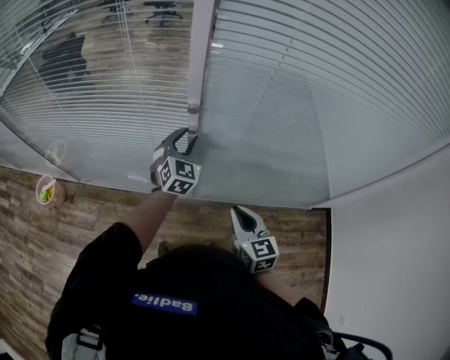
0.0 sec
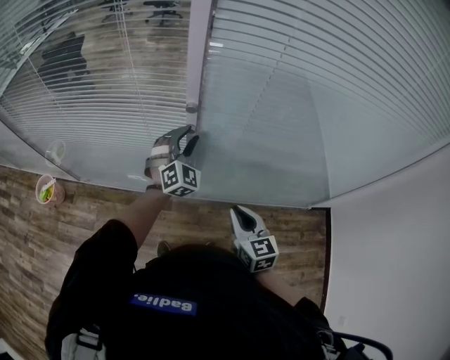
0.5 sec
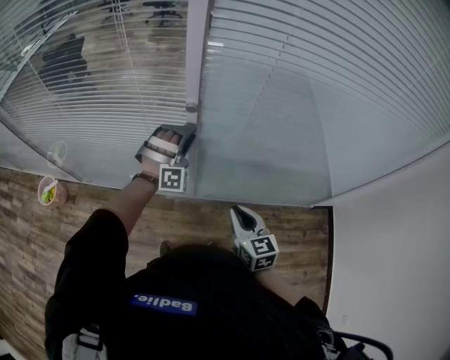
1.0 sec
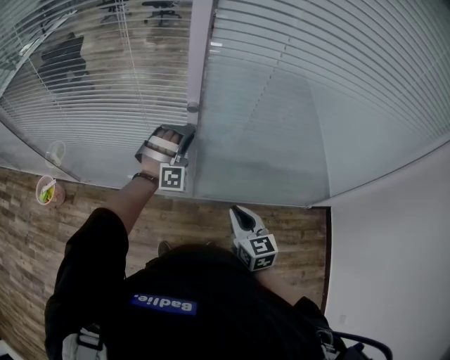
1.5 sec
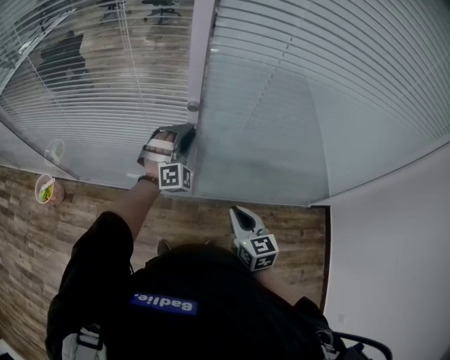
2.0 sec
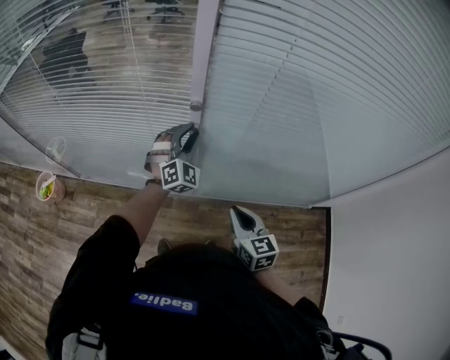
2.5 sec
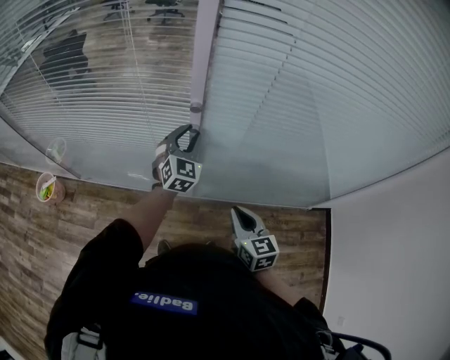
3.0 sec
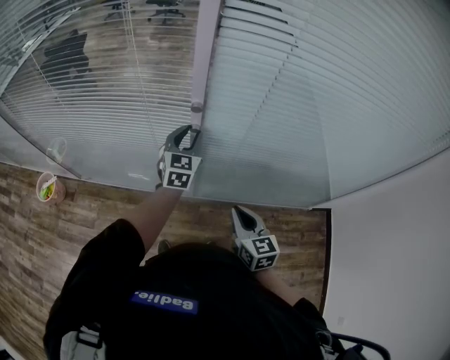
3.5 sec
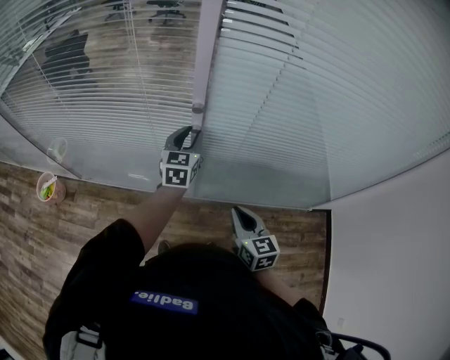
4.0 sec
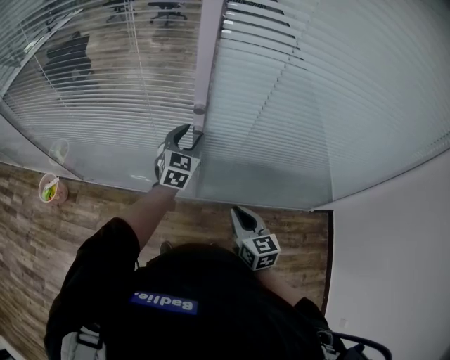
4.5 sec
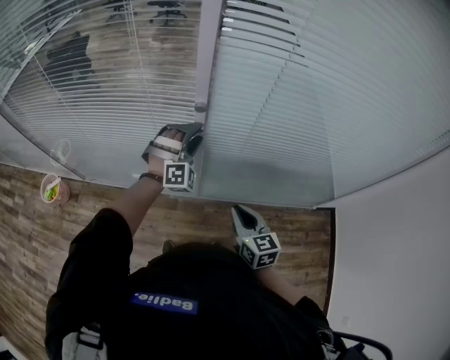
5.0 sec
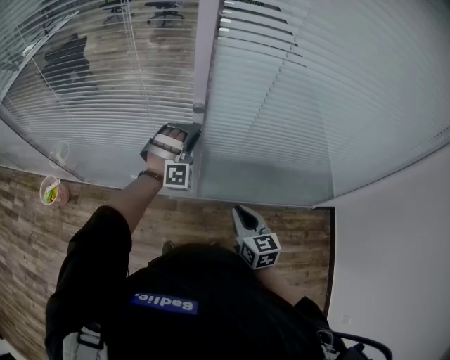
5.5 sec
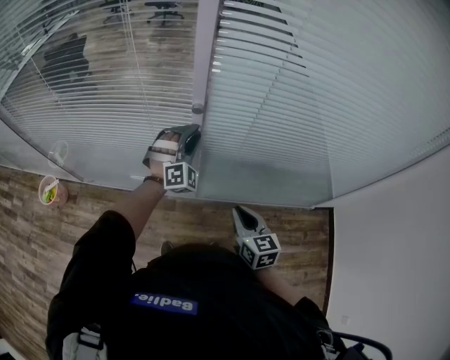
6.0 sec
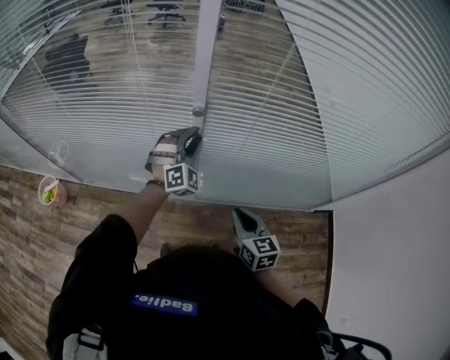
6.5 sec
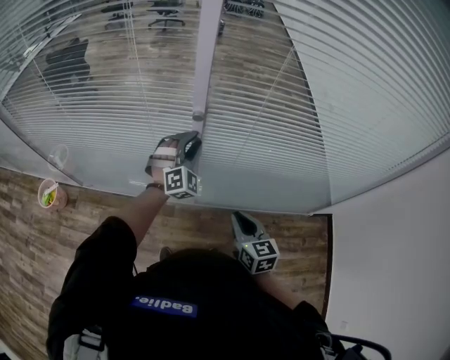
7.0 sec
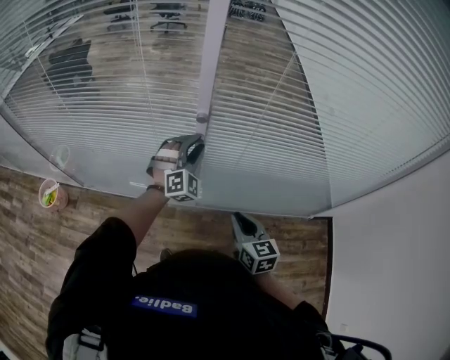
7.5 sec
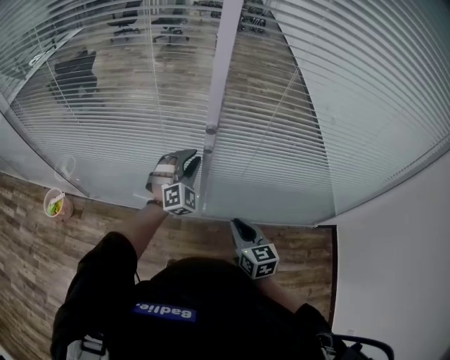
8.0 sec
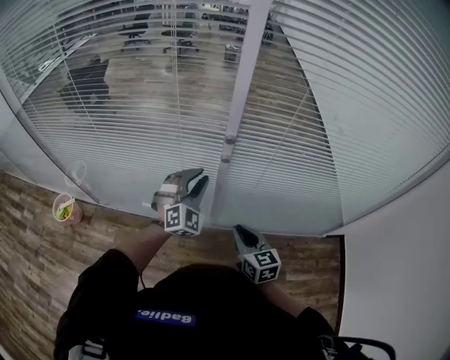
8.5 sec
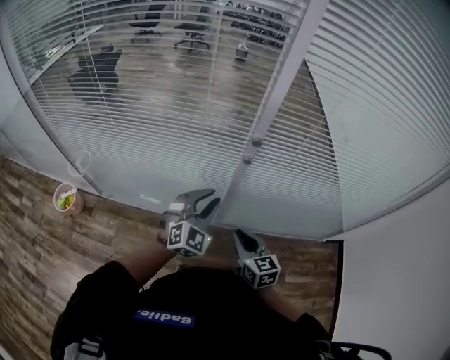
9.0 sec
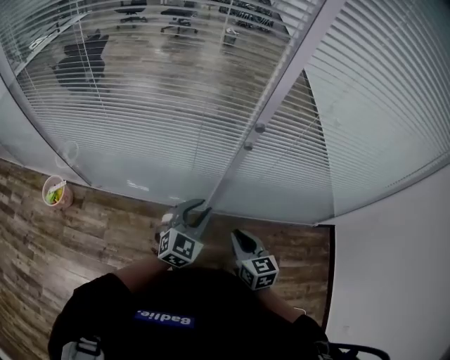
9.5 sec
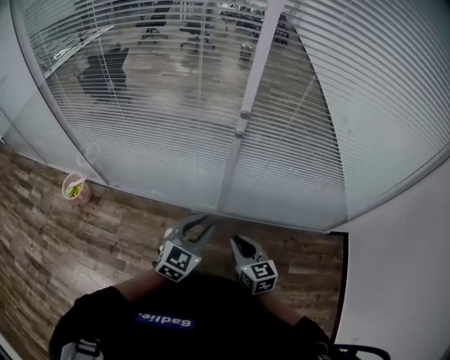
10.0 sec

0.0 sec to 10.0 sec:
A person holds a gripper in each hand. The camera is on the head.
0.0 sec to 2.0 sec: The left gripper twists roughly 50 degrees clockwise, seen from behind.
2.0 sec to 4.0 sec: The left gripper twists about 70 degrees counterclockwise, seen from behind.
4.0 sec to 6.0 sec: The left gripper rotates around the line of its fingers by about 70 degrees, clockwise from behind.
6.0 sec to 8.0 sec: The grippers move only a little.
8.0 sec to 10.0 sec: The right gripper moves backward and to the left, approximately 15 cm, while the left gripper heads backward, covering about 30 cm, and rotates around the line of its fingers by approximately 40 degrees, counterclockwise from behind.

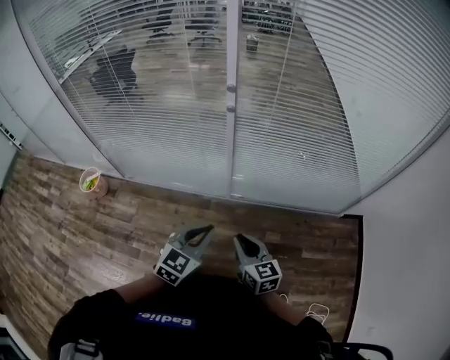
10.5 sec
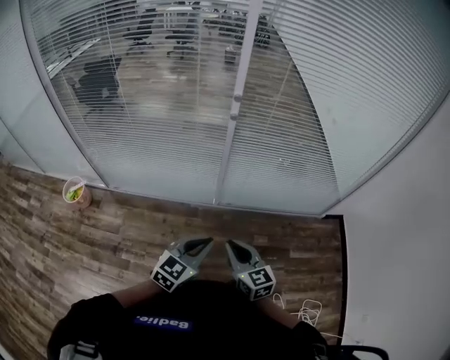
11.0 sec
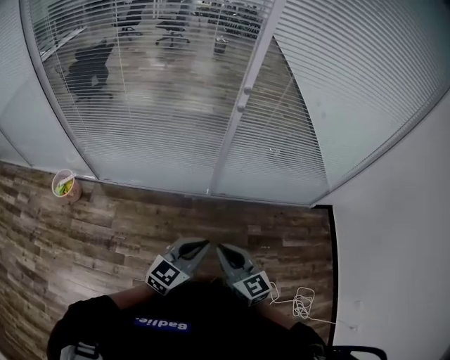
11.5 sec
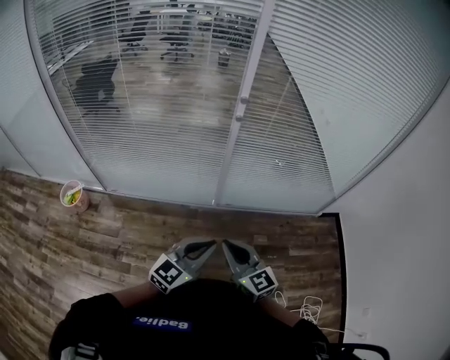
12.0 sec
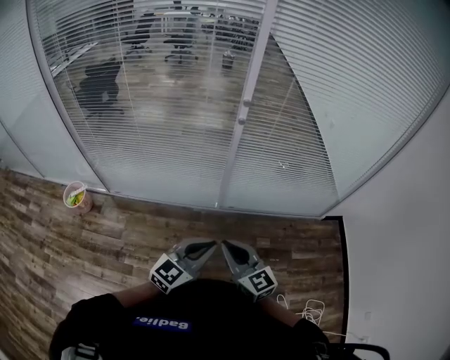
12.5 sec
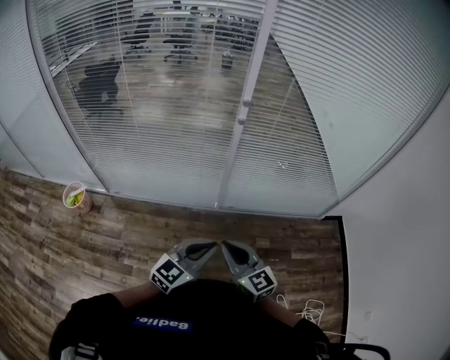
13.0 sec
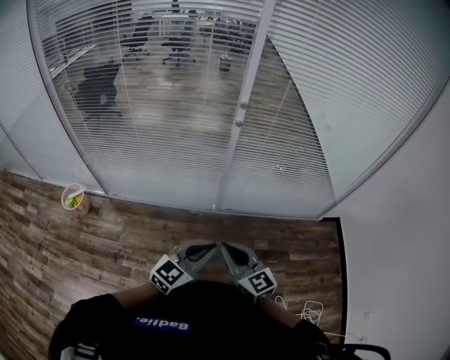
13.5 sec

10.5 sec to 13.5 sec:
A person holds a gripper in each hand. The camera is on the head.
10.5 sec to 12.0 sec: The left gripper heads backward, covering some 5 cm, and turns by some 20 degrees, while the right gripper moves to the left, upward and backward, some 15 cm.
12.0 sec to 13.5 sec: Both grippers stay put.

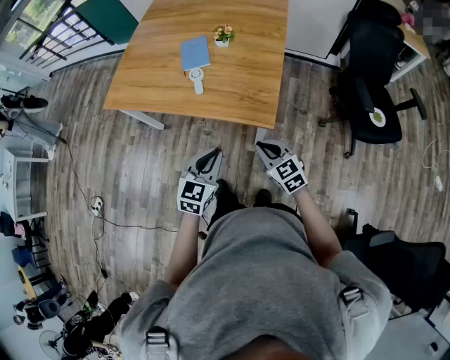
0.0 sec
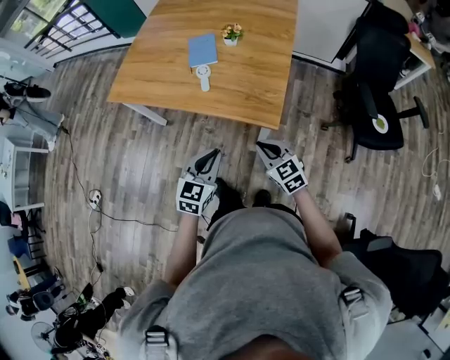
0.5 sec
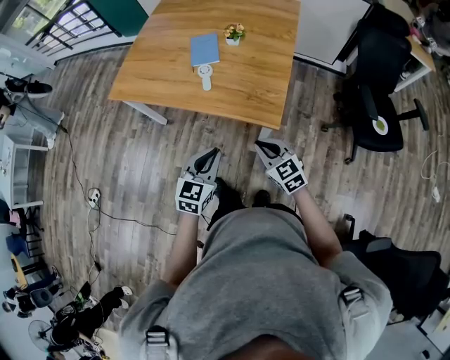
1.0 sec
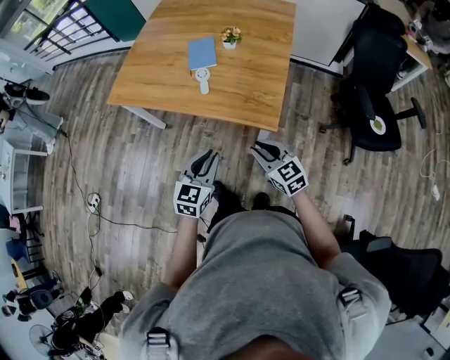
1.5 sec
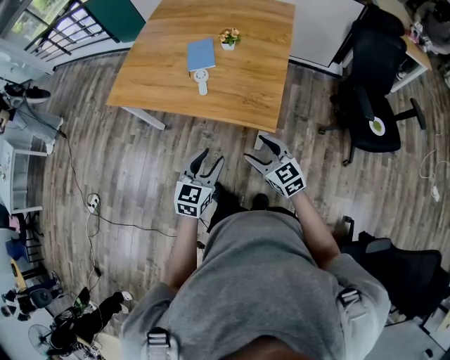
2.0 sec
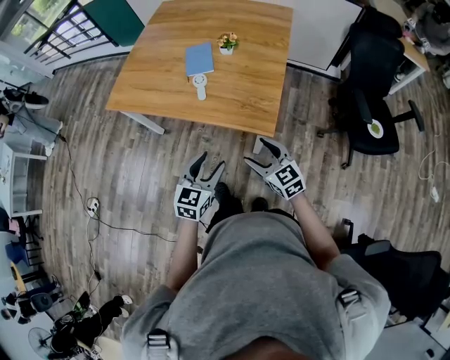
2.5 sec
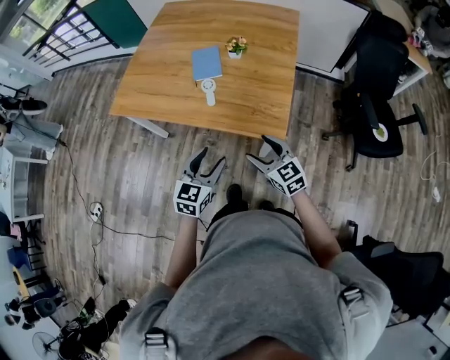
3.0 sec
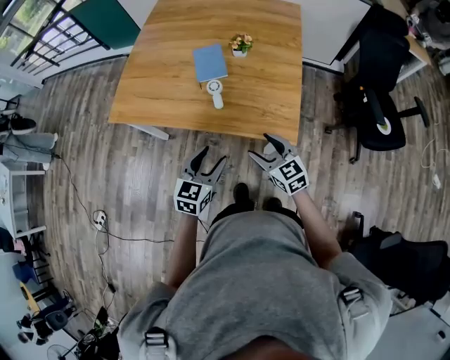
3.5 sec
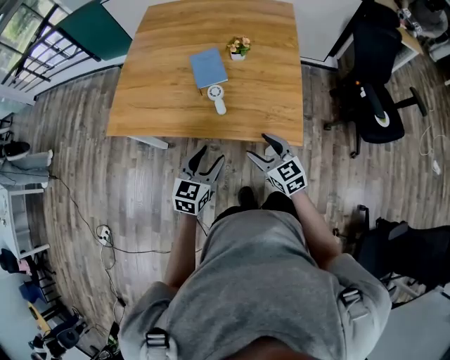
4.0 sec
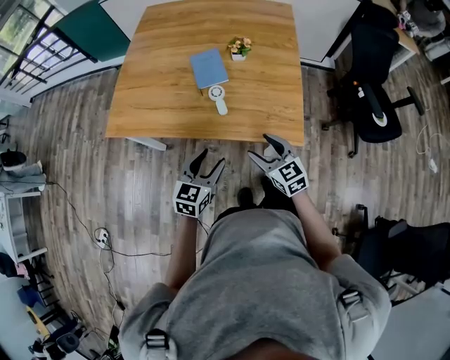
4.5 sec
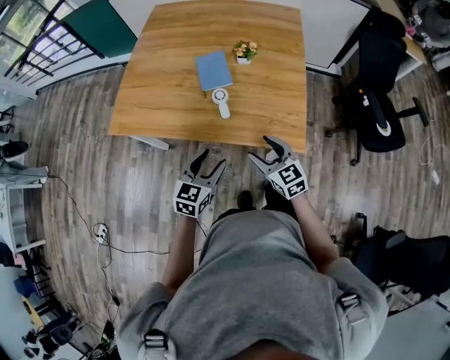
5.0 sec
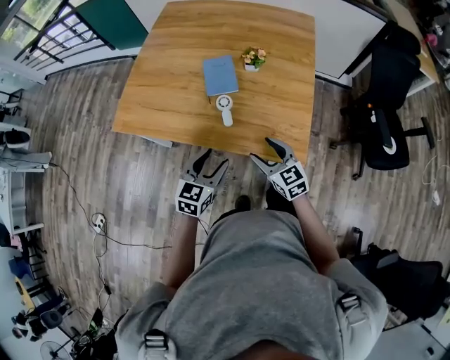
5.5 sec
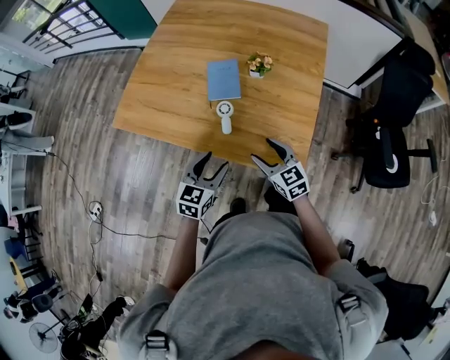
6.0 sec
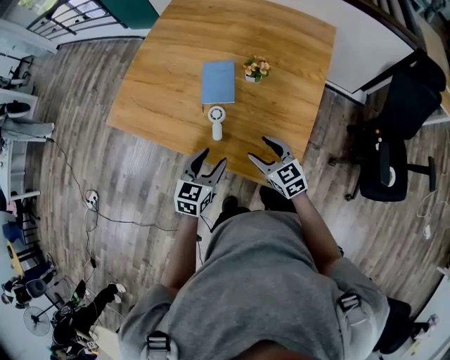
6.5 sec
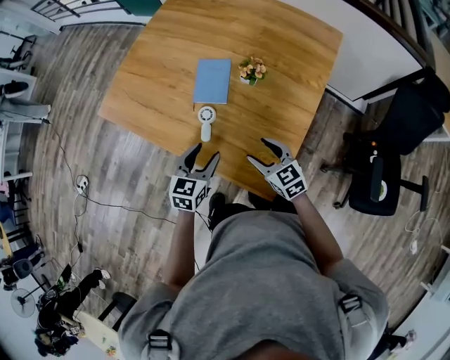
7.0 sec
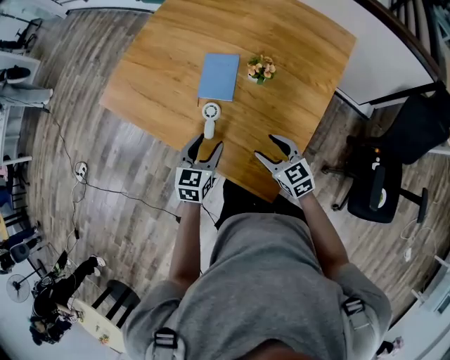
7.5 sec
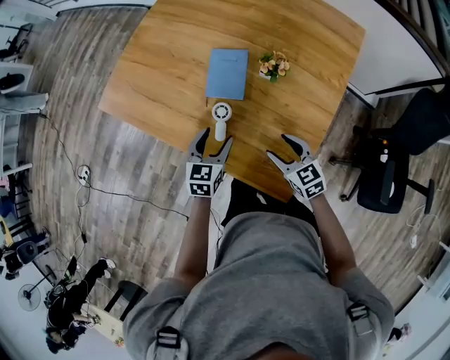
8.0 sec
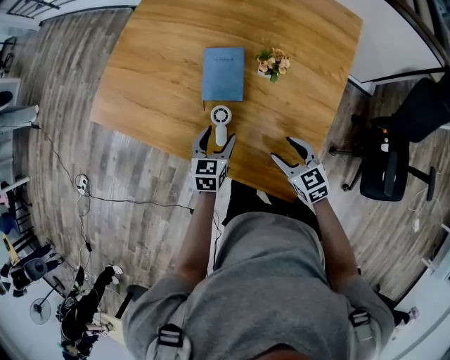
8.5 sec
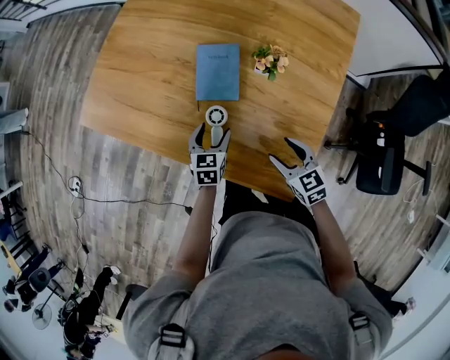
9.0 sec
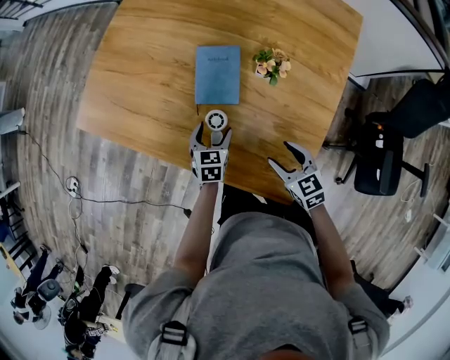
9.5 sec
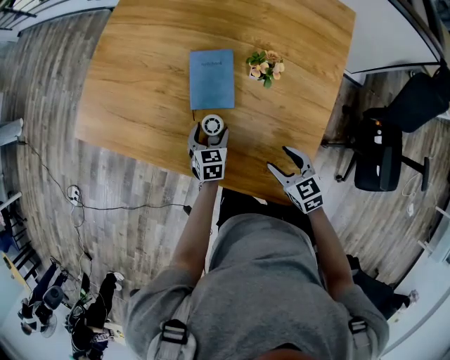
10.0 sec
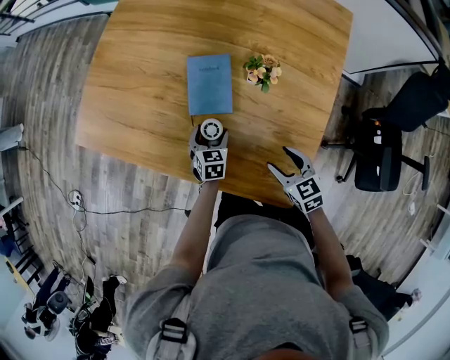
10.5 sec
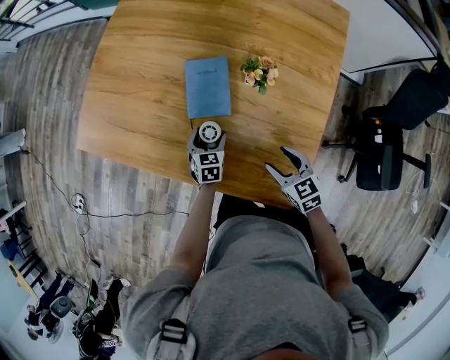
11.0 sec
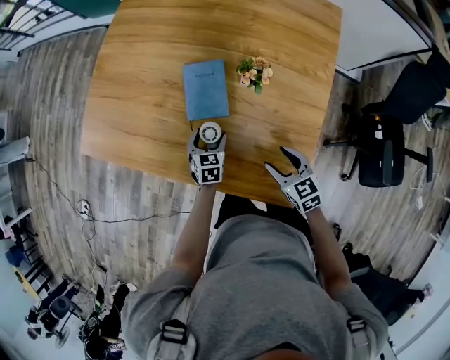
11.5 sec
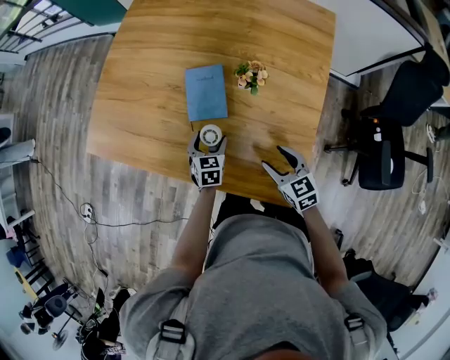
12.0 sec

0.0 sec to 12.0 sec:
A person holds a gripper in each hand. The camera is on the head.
0.0 sec to 2.0 sec: The right gripper opens its fingers, while the left gripper opens.
2.0 sec to 4.0 sec: Both grippers travel together forward and to the left, roughly 20 cm.
4.0 sec to 6.0 sec: Both grippers move forward, about 10 cm.
6.0 sec to 8.0 sec: The right gripper heads forward, to the right and downward, covering about 15 cm. The left gripper moves forward and downward, about 15 cm, and changes its angle by some 20 degrees.
8.0 sec to 10.0 sec: The left gripper moves downward and forward, some 20 cm.
10.0 sec to 12.0 sec: The left gripper moves approximately 5 cm.

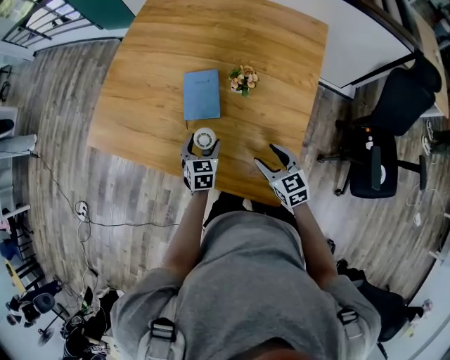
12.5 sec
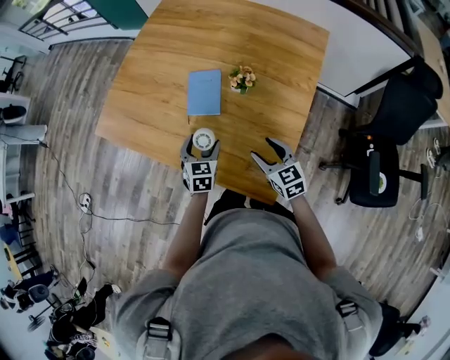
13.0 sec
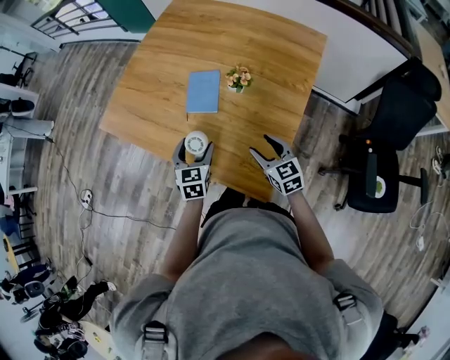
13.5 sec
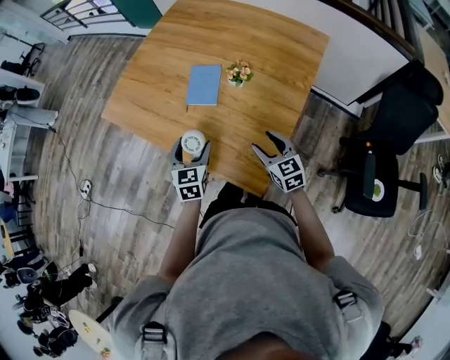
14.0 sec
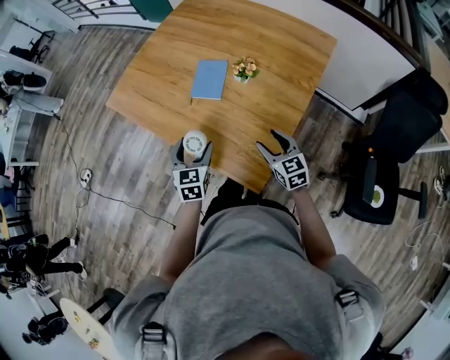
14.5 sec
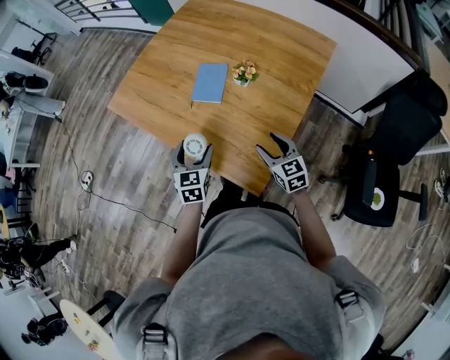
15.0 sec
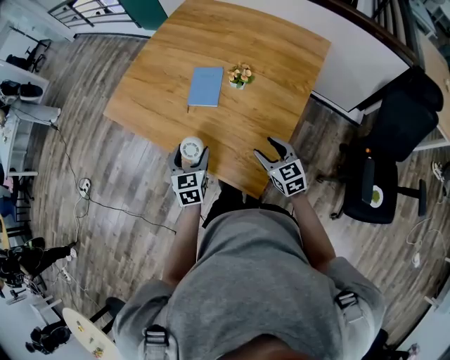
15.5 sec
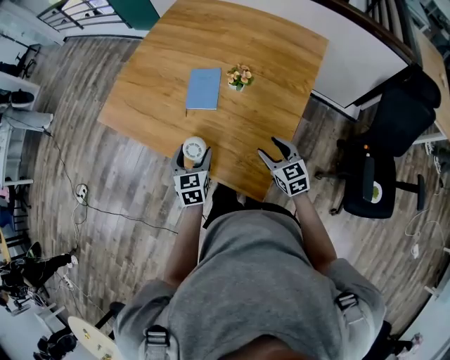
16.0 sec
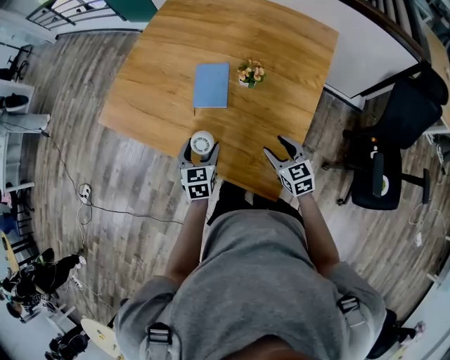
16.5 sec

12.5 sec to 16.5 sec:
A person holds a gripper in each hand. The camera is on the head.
12.5 sec to 14.5 sec: The left gripper heads backward and upward, covering approximately 20 cm. The right gripper travels backward and to the right by about 10 cm.
14.5 sec to 16.5 sec: The right gripper shifts by about 5 cm; the left gripper travels forward and downward by approximately 10 cm.
